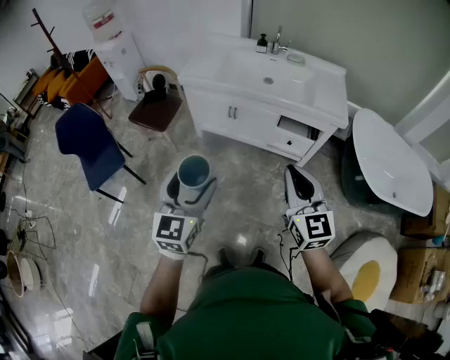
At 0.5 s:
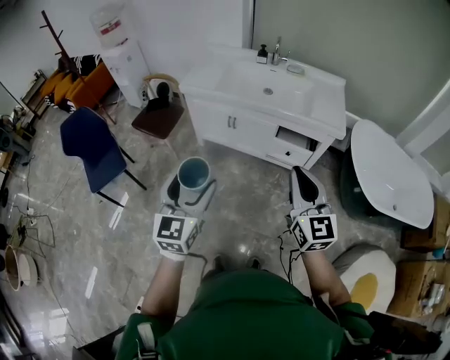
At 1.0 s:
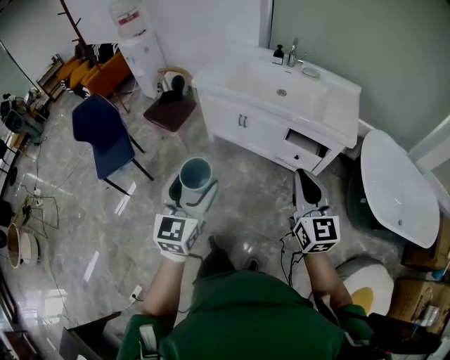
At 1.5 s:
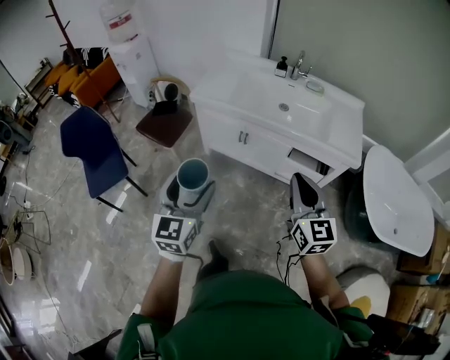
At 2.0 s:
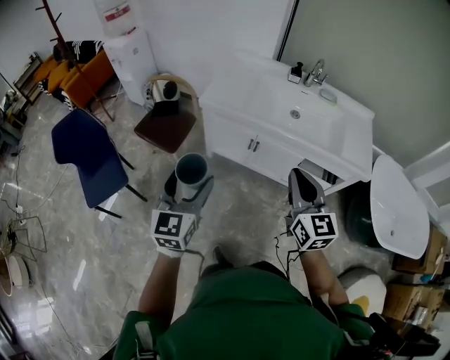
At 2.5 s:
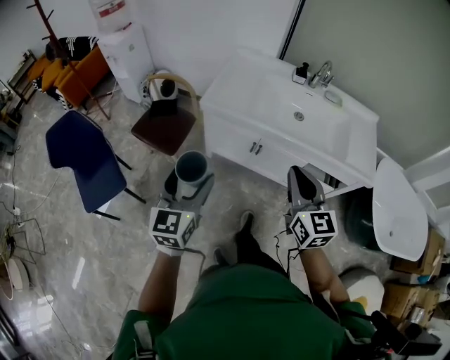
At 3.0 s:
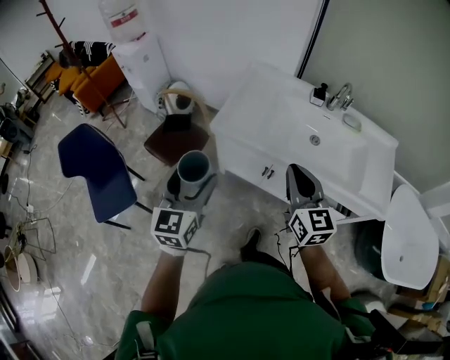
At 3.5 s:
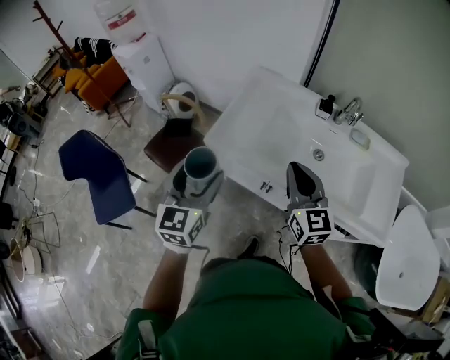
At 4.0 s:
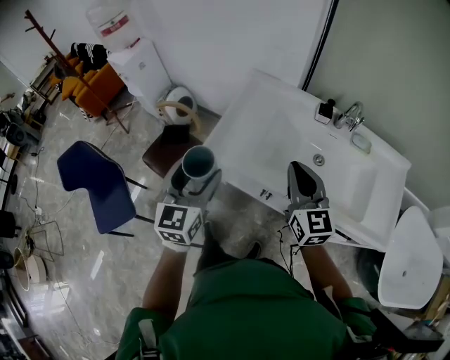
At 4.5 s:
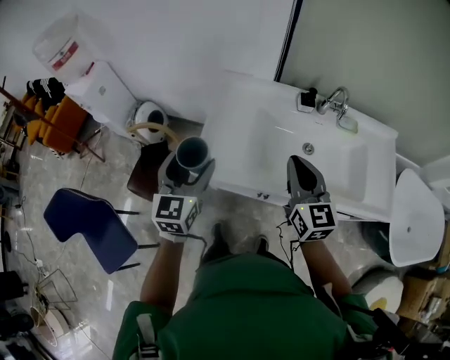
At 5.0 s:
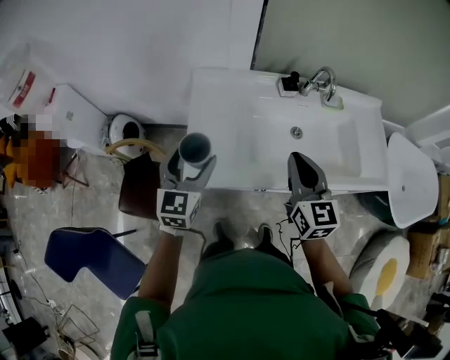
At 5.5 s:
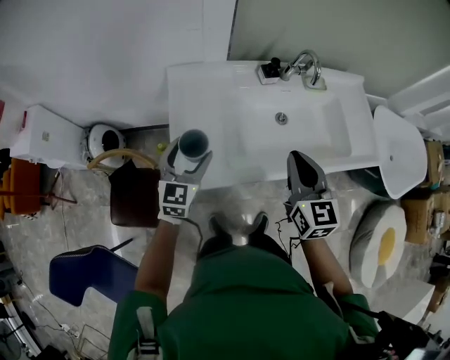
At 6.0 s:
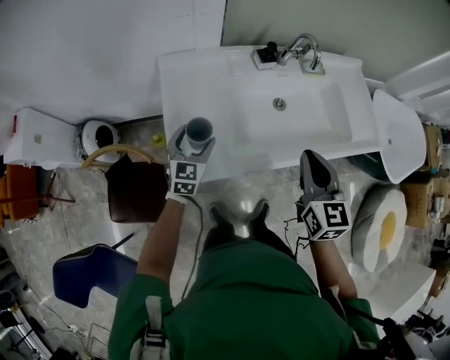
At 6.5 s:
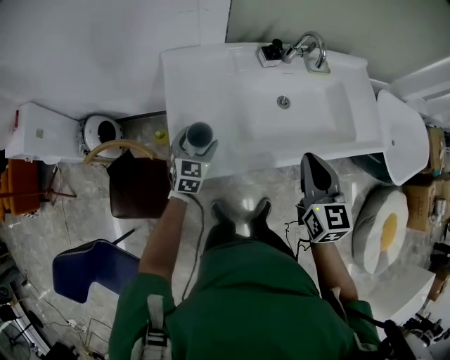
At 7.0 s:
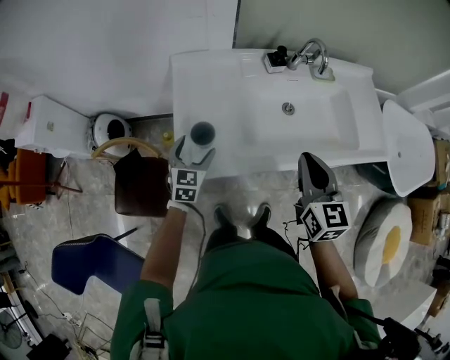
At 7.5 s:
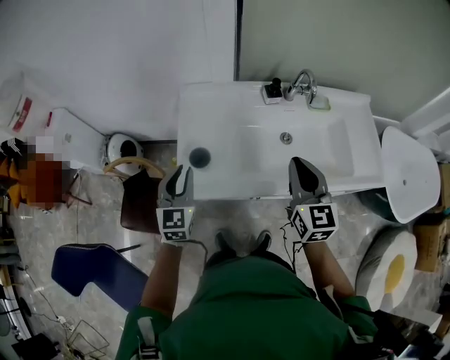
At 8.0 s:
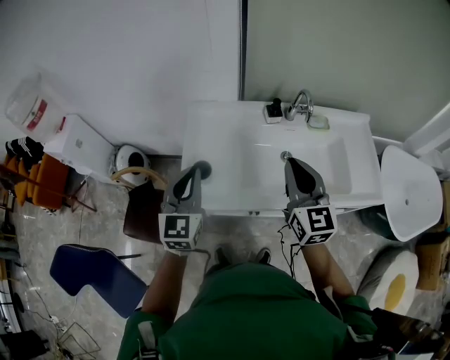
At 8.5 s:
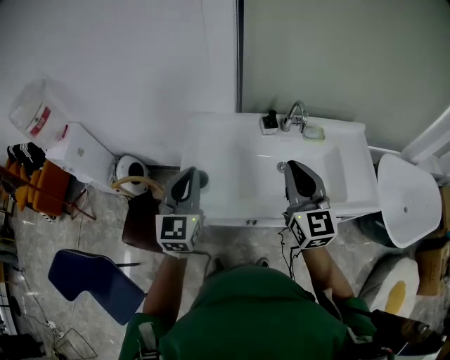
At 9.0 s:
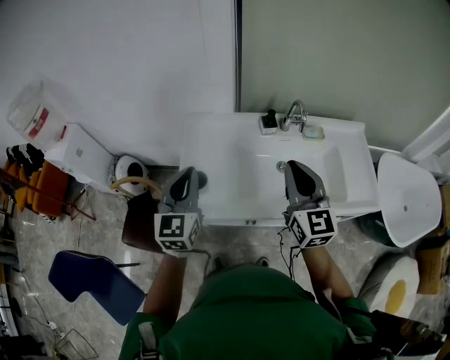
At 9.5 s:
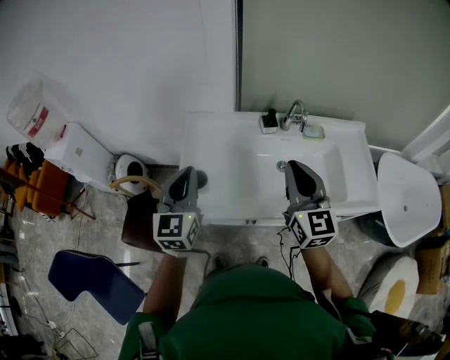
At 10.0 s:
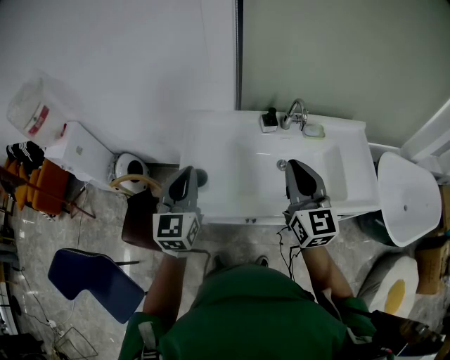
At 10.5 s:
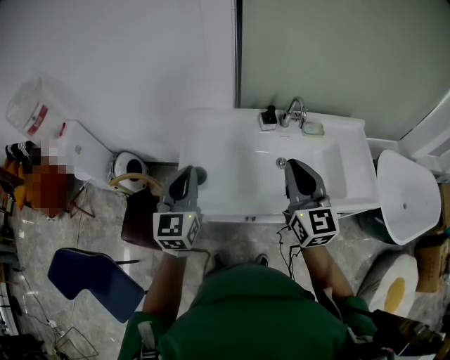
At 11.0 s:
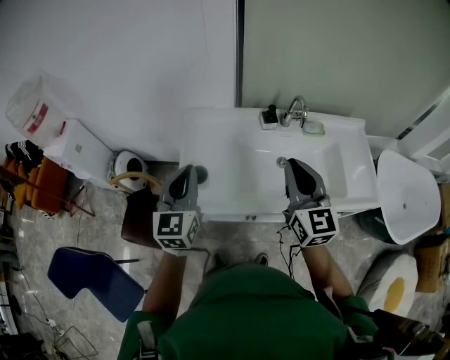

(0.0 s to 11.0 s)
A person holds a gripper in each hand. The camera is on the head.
0.0 s - 2.0 s: Both grippers travel together forward and to the left, approximately 30 cm.
2.0 s - 3.5 s: Both grippers move forward, roughly 35 cm.
3.5 s - 5.5 s: The right gripper ends up roughly 10 cm from where it was, and swivels about 40 degrees, while the left gripper changes place by about 30 cm, and changes its angle by roughly 40 degrees.
5.5 s - 7.5 s: The left gripper travels backward by roughly 5 cm, moves about 10 cm downward and comes back, and closes up, while the right gripper moves to the right, some 5 cm.
7.5 s - 9.0 s: The left gripper travels upward and to the right by some 15 cm. The right gripper heads upward, covering some 10 cm.
9.0 s - 11.0 s: Both grippers stay put.

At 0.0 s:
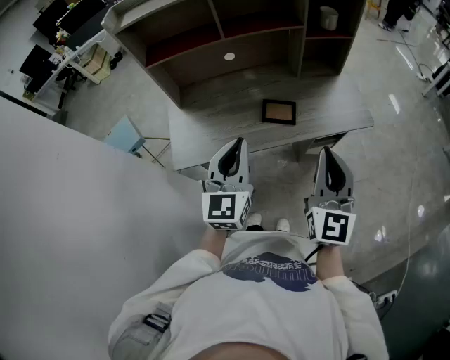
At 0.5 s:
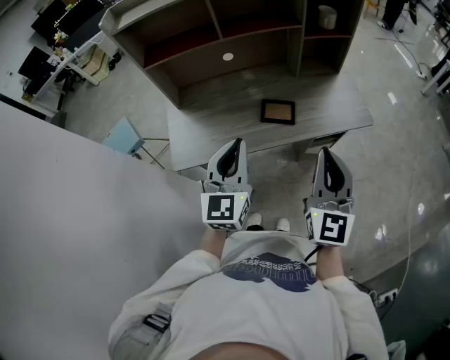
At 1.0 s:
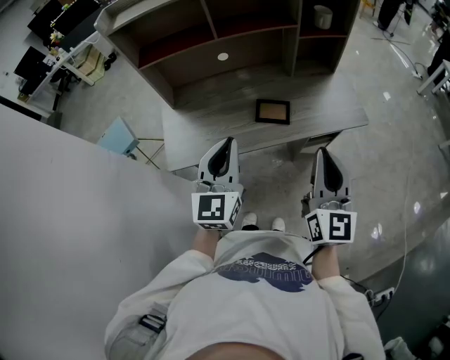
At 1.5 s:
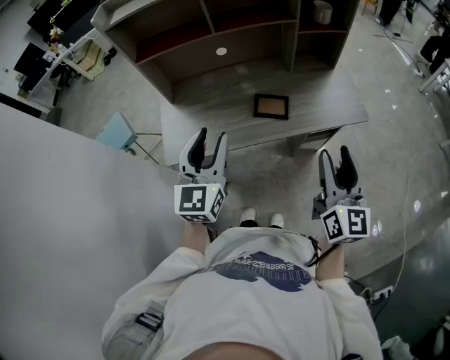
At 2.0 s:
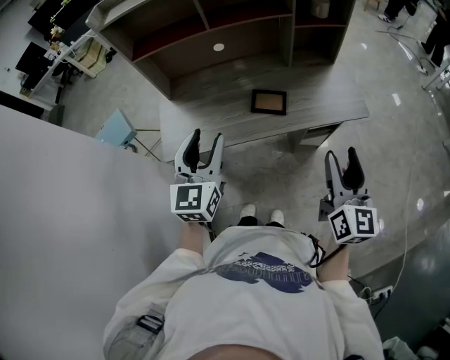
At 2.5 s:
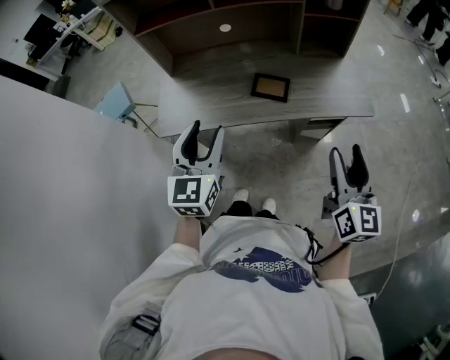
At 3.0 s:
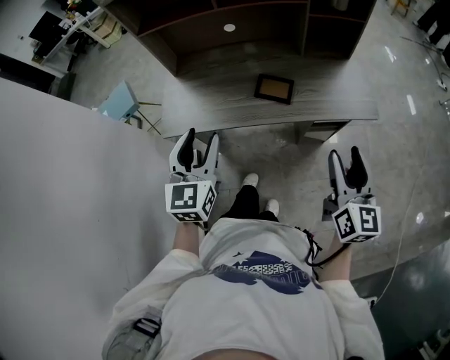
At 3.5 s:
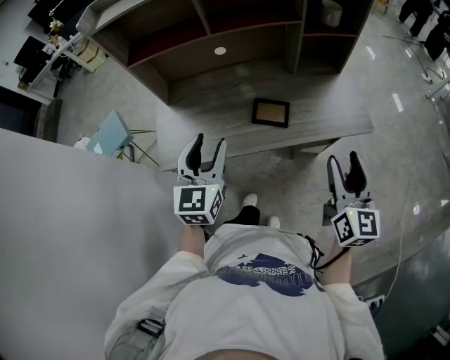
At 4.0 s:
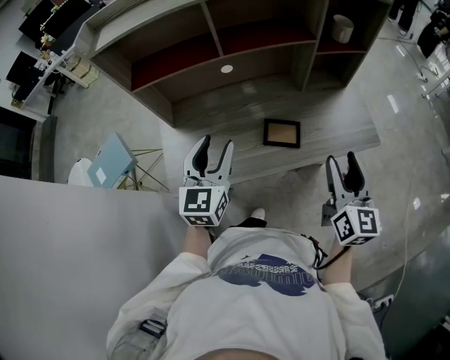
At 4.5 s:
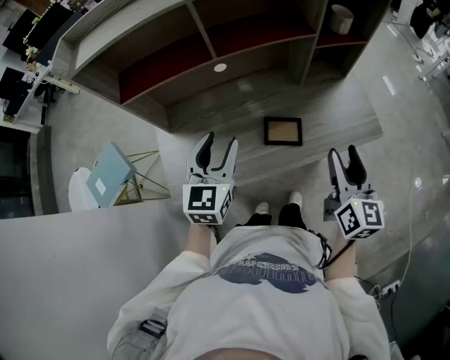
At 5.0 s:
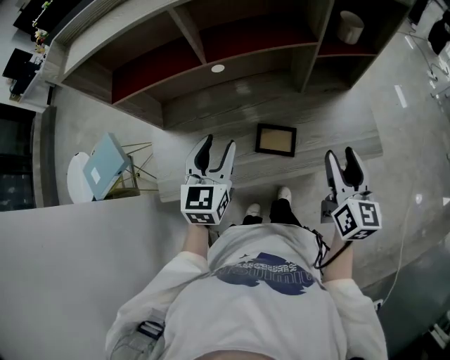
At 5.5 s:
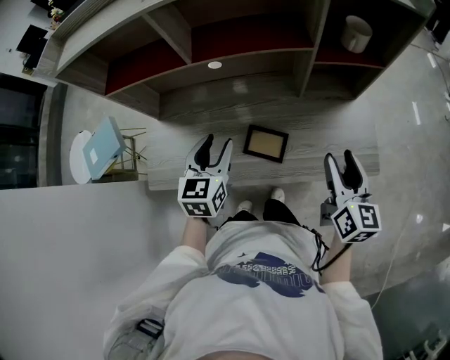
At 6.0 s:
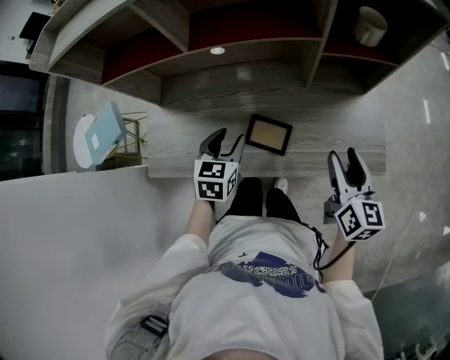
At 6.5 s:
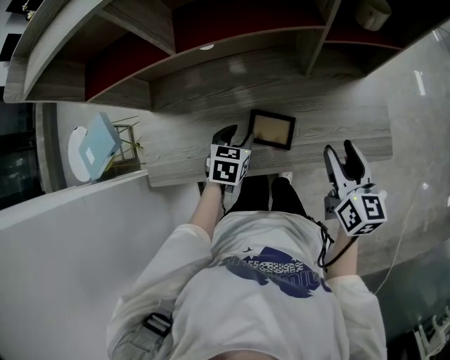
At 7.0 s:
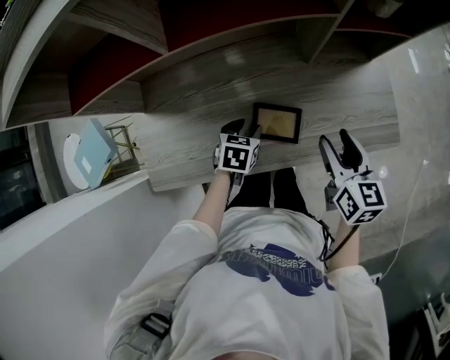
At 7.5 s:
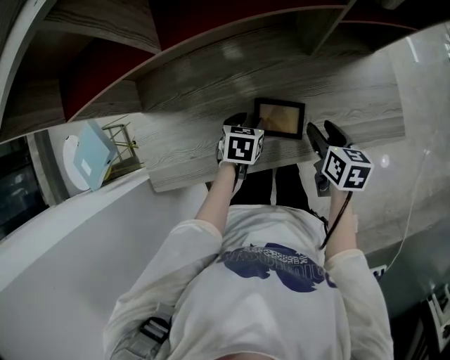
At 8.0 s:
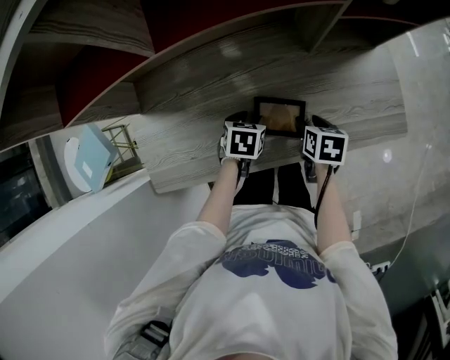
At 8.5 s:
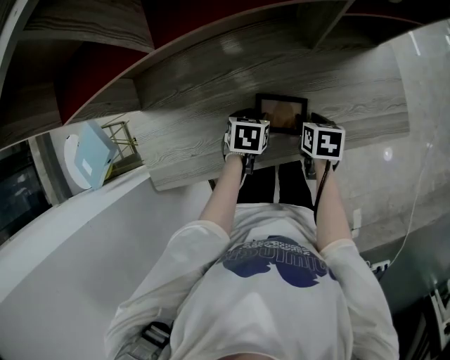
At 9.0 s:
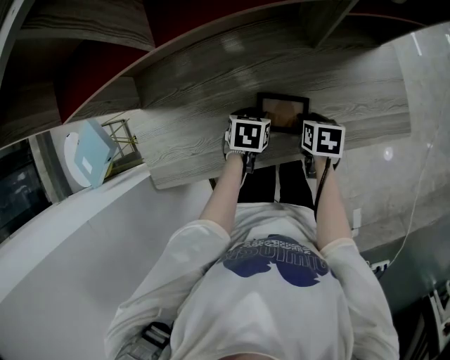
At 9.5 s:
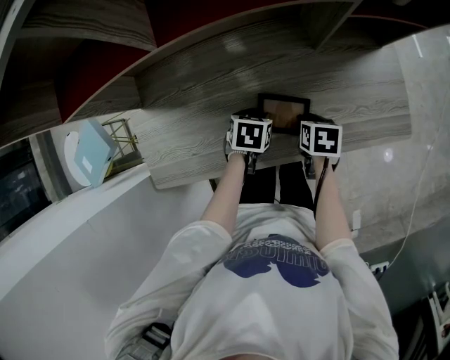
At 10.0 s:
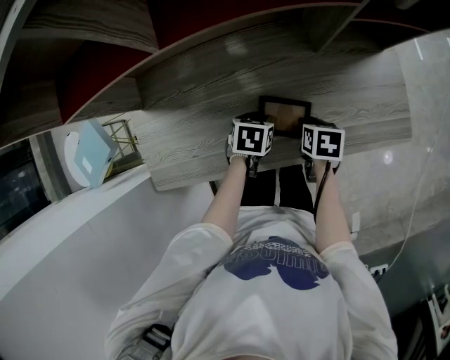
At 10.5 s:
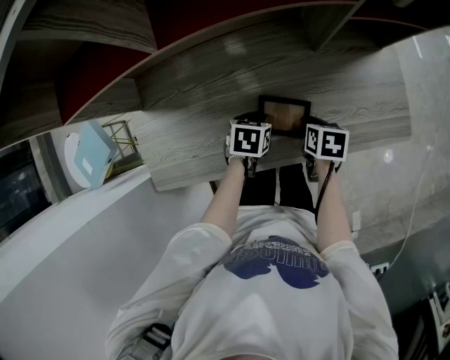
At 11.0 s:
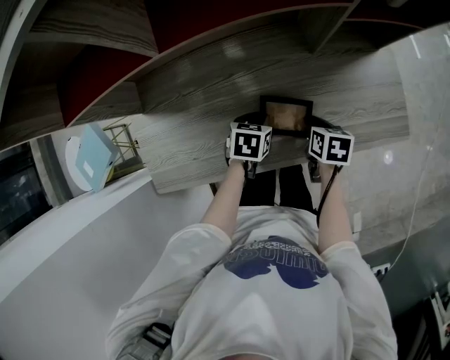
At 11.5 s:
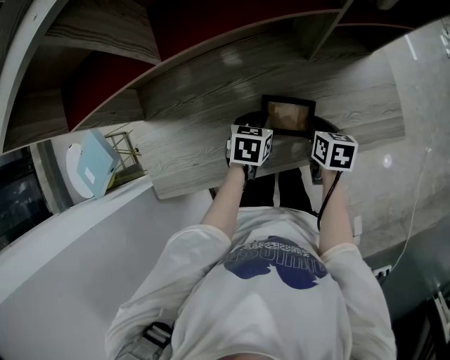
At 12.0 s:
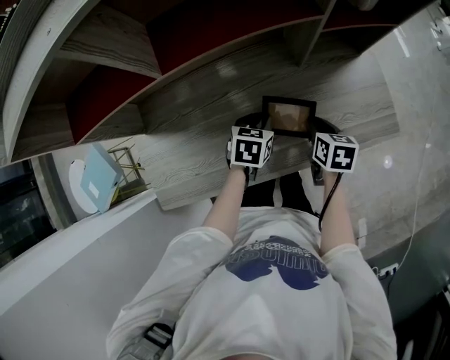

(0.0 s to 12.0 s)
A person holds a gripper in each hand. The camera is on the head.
0.0 s - 2.0 s: The right gripper shifts about 10 cm to the right, and opens its fingers; the left gripper opens its fingers.
2.0 s - 4.0 s: The grippers both shift forward by roughly 15 cm.
4.0 s - 6.0 s: The left gripper travels downward, to the right and forward by about 20 cm, and changes its angle by some 30 degrees. The right gripper shifts some 20 cm forward, to the right and downward, and changes its angle by some 20 degrees.
6.0 s - 8.0 s: The left gripper shifts approximately 20 cm downward, and rotates roughly 30 degrees. Meanwhile the right gripper goes some 25 cm downward and to the left, and points its fingers approximately 40 degrees further downward.
8.0 s - 10.0 s: The right gripper closes its fingers.
10.0 s - 12.0 s: Both grippers travel together upward, some 5 cm.

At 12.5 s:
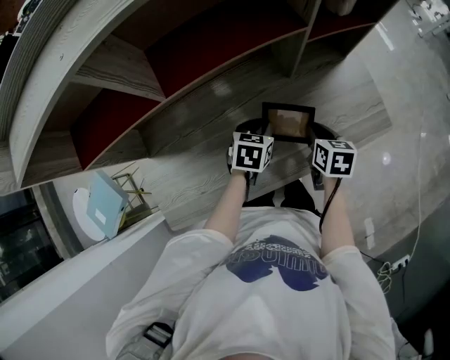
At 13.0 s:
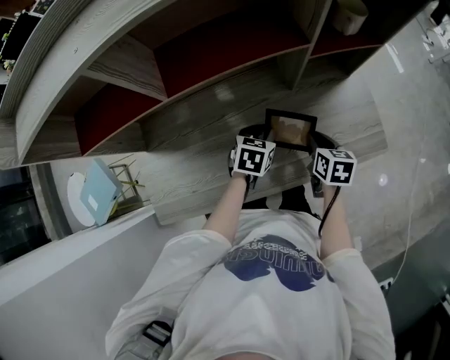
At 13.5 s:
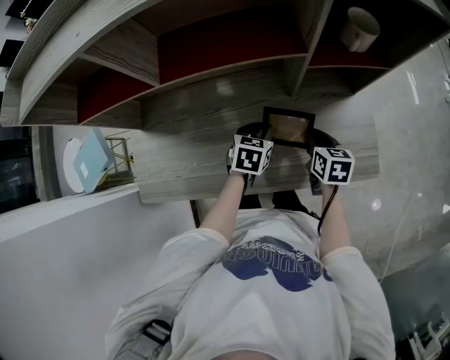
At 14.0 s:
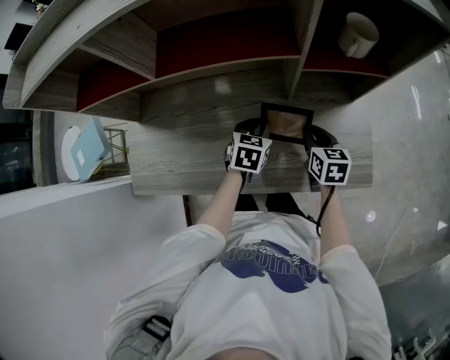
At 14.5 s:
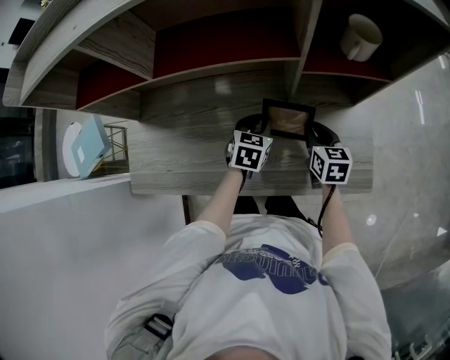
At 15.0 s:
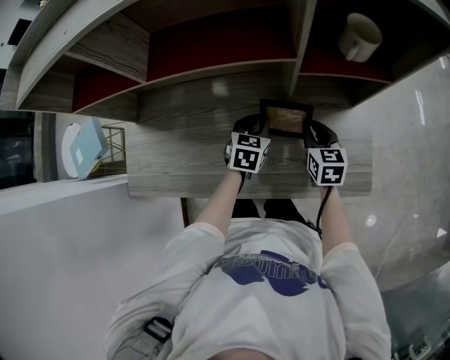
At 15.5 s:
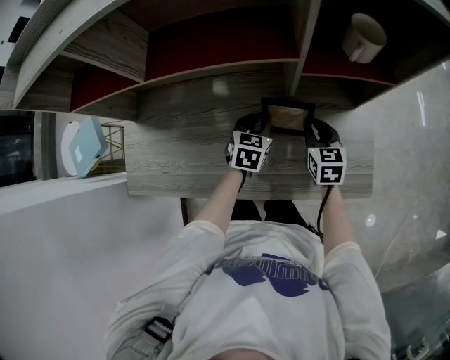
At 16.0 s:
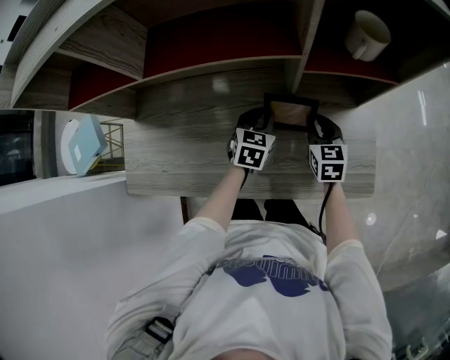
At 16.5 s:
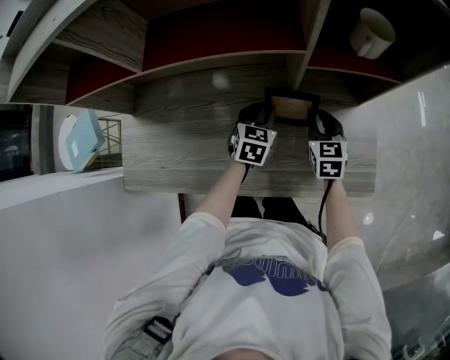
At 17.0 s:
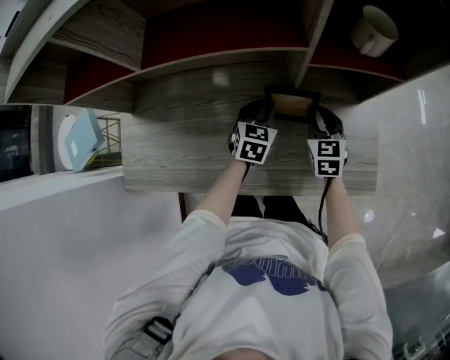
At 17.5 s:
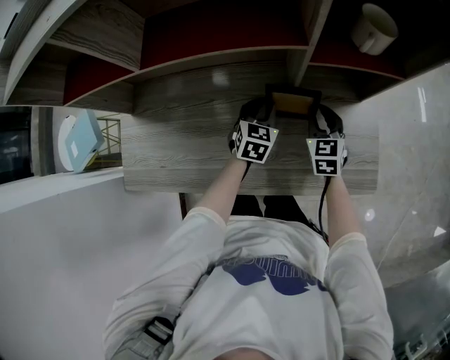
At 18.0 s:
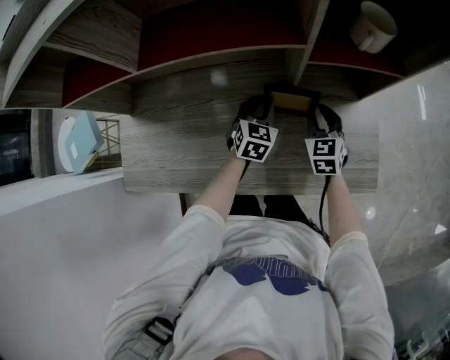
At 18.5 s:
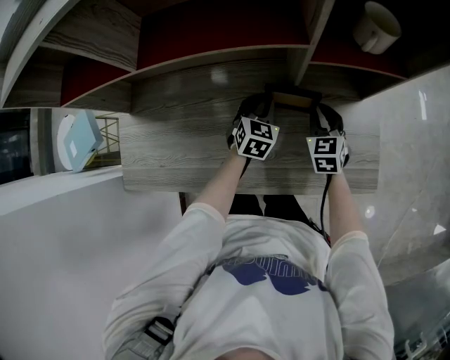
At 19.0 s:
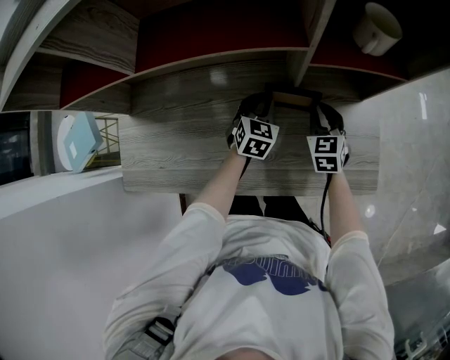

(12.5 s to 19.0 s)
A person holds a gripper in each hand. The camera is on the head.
12.5 s - 14.5 s: The right gripper is displaced forward and to the right by roughly 10 cm, and changes its angle by about 30 degrees. Meanwhile the left gripper goes some 10 cm to the right and forward, and turns by some 20 degrees.
14.5 s - 17.0 s: The right gripper turns by about 20 degrees.
17.0 s - 19.0 s: There are only small adjustments of the grippers.
